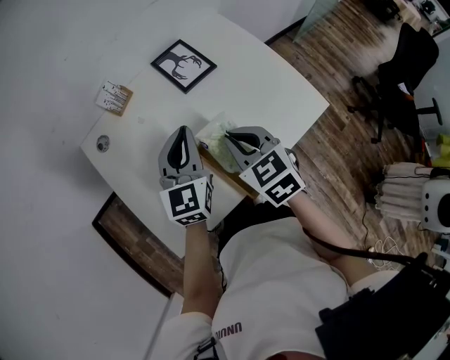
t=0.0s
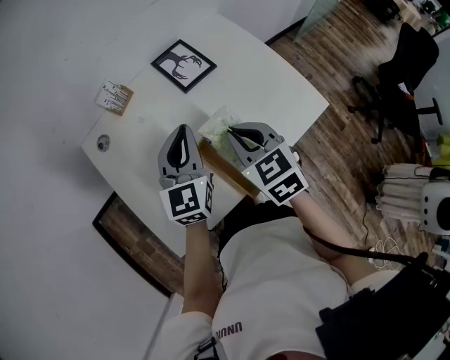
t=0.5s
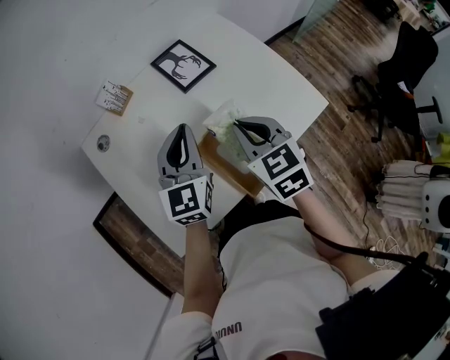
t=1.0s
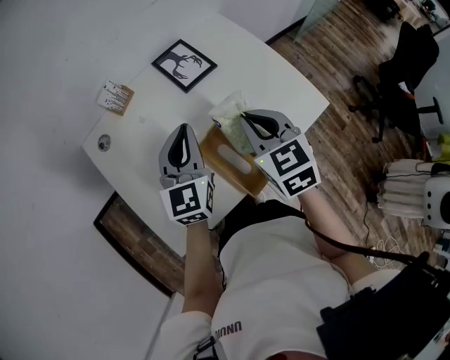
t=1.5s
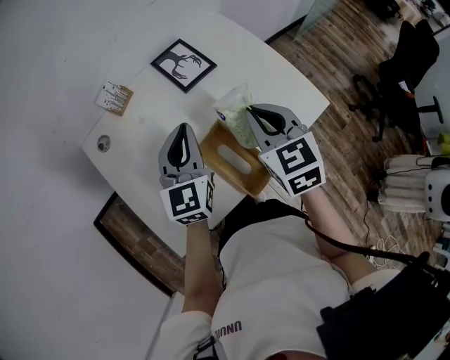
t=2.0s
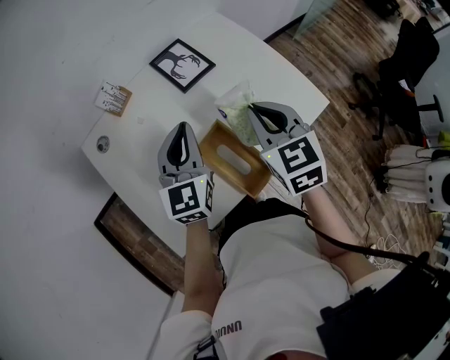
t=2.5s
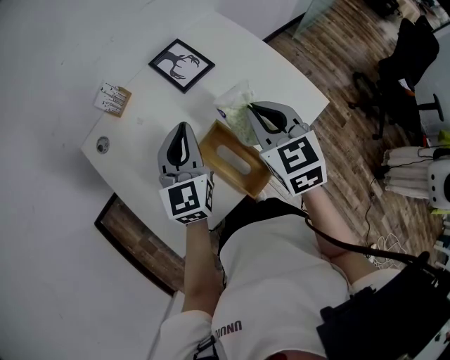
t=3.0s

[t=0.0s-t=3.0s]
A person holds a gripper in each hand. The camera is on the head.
t=0.0s to t=1.5s: The right gripper shifts by about 5 cm.
t=1.5s to t=3.0s: There are only small adjustments of the grippers.

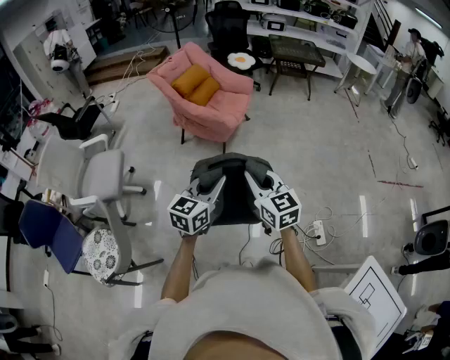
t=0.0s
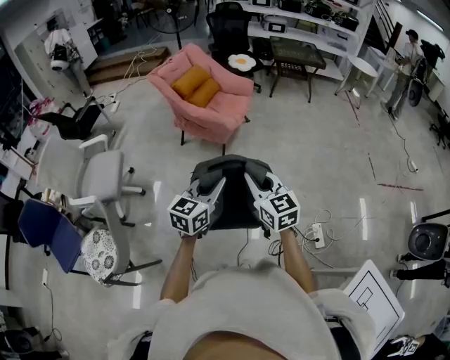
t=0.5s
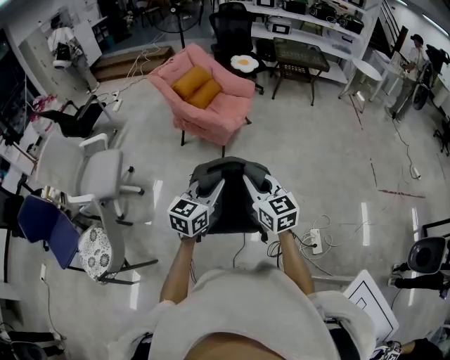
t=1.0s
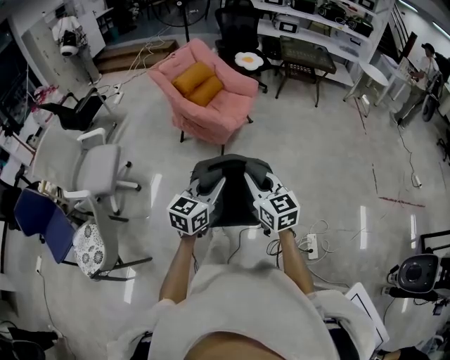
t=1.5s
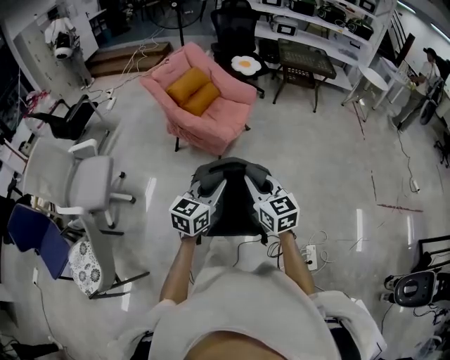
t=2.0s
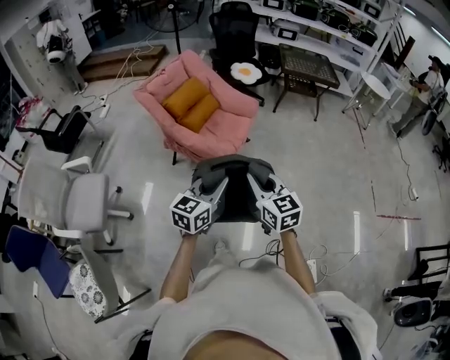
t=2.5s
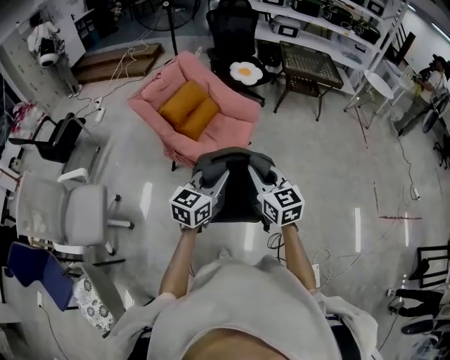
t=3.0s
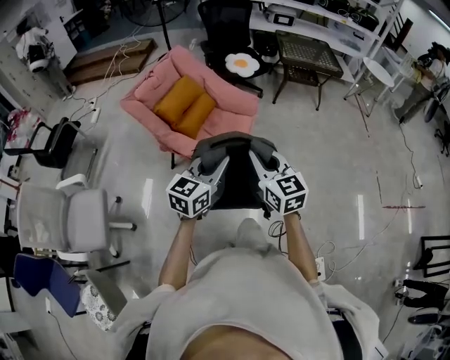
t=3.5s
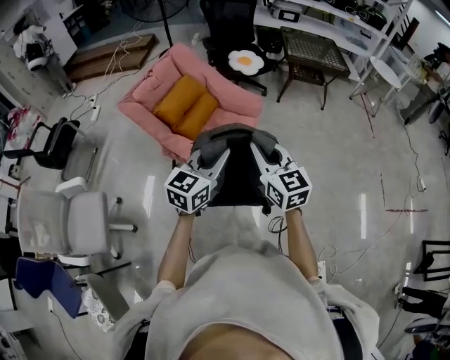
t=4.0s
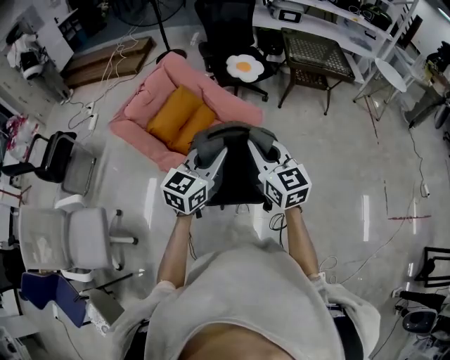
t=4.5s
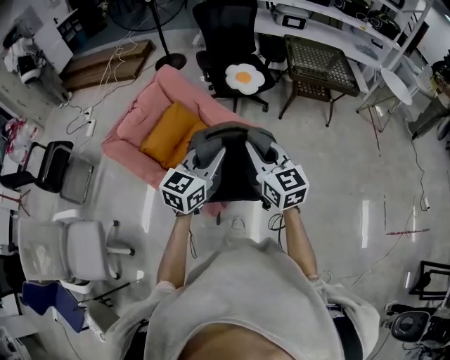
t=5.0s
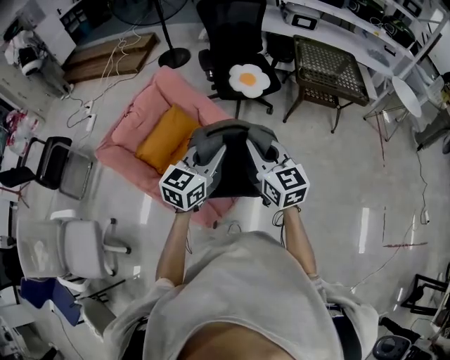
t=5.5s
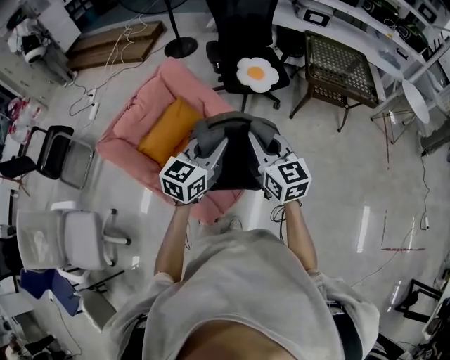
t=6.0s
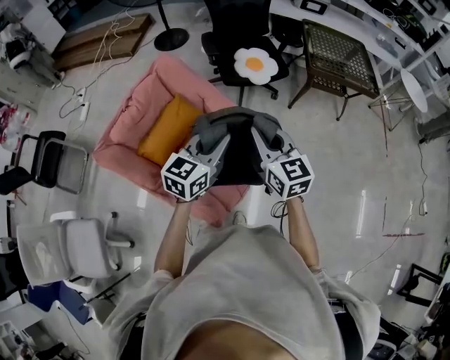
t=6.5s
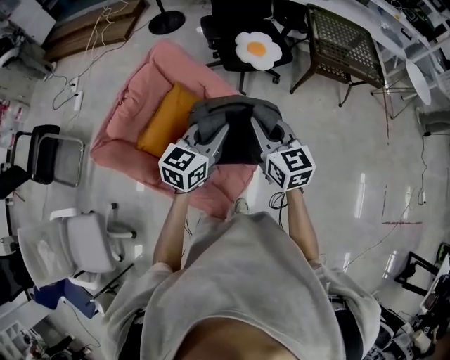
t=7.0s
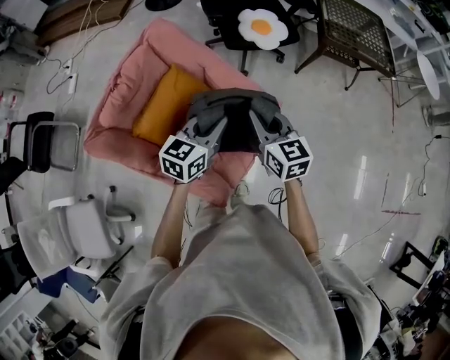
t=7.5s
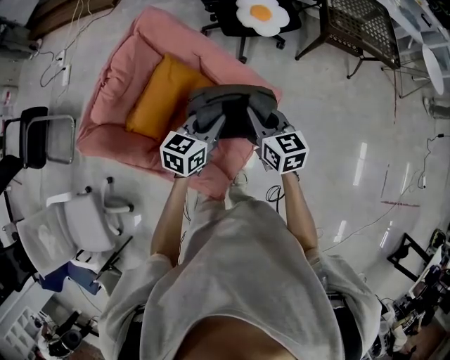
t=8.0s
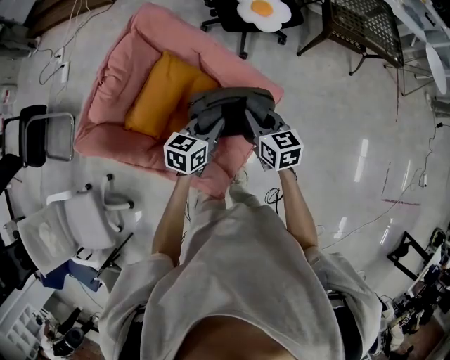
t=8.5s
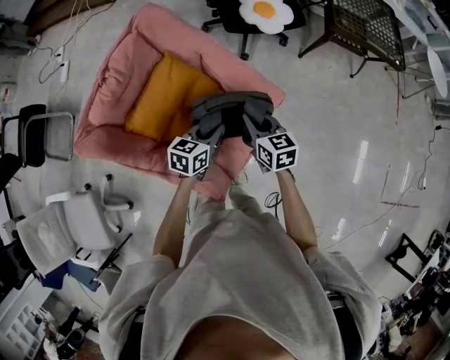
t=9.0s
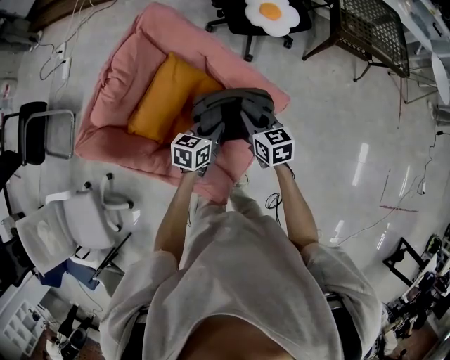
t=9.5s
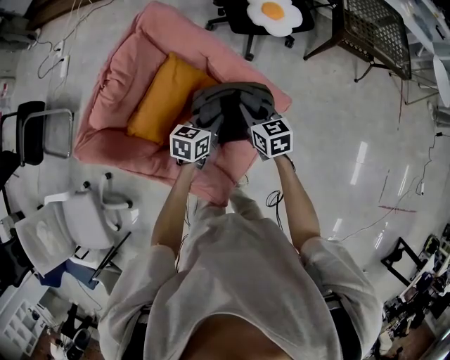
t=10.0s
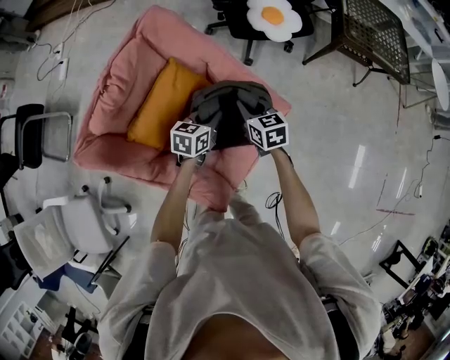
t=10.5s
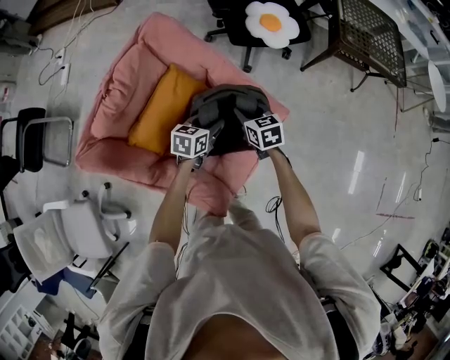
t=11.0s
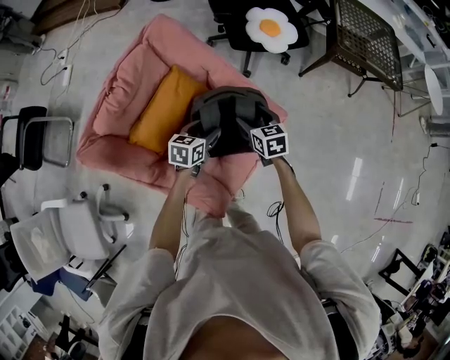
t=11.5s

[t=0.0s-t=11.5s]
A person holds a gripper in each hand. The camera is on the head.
t=0.0s to t=2.0s: Both grippers move forward, roughly 20 cm.
t=2.0s to t=4.0s: The two grippers travel together, forward, some 40 cm.
t=4.0s to t=6.0s: Both grippers are carried forward, roughly 40 cm.
t=6.0s to t=7.5s: Both grippers travel together downward, forward and to the left, roughly 20 cm.
t=7.5s to t=9.5s: The two grippers go roughly 20 cm downward. The left gripper swivels roughly 20 degrees.
t=9.5s to t=11.5s: The left gripper shifts by approximately 5 cm, and opens, while the right gripper shifts by approximately 5 cm, and opens up.

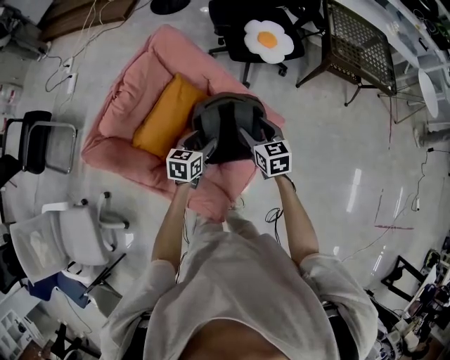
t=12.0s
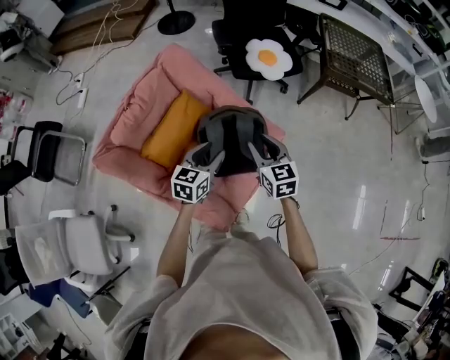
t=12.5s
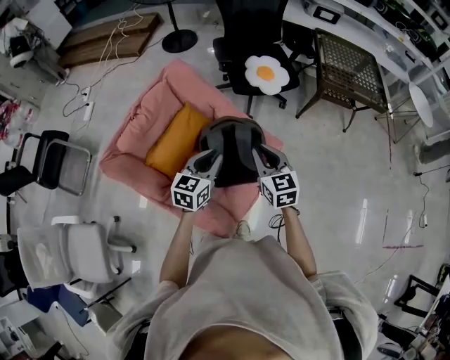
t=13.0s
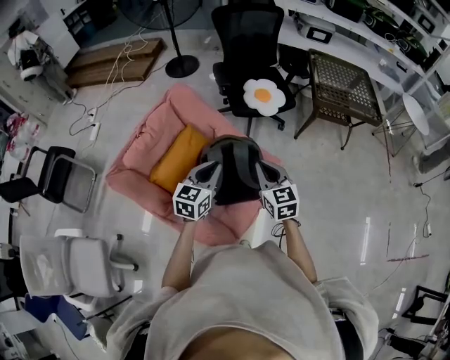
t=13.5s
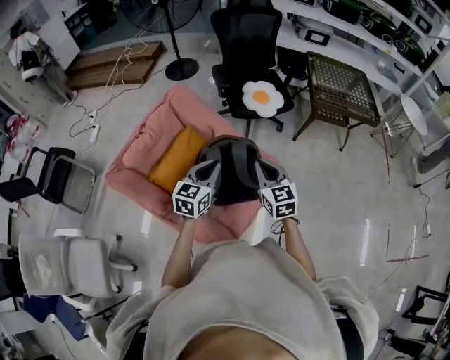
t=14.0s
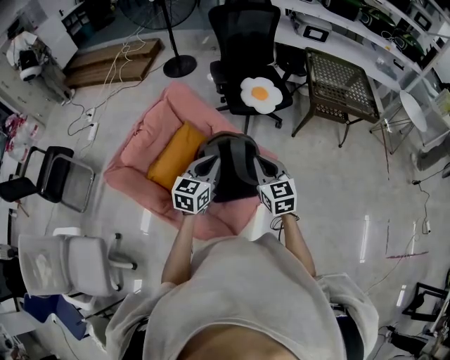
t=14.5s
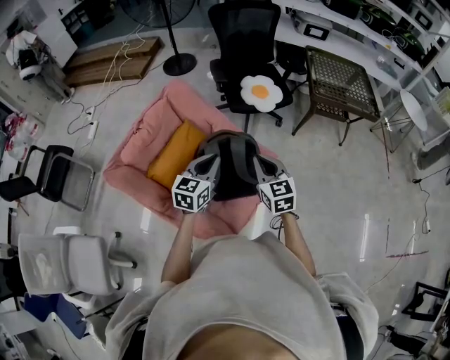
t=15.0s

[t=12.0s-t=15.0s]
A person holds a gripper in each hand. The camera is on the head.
t=12.0s to t=13.5s: The left gripper heads upward, covering about 20 cm, rotates some 20 degrees, and closes its fingers. The right gripper shifts some 20 cm upward and backward, and closes its fingers.
t=13.5s to t=15.0s: Both grippers stay put.

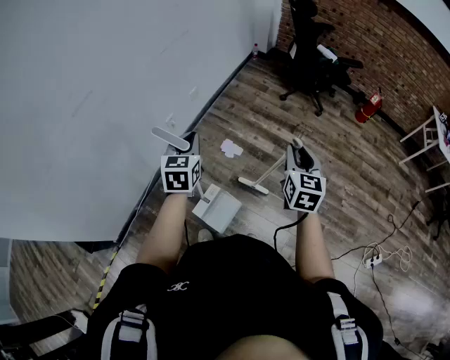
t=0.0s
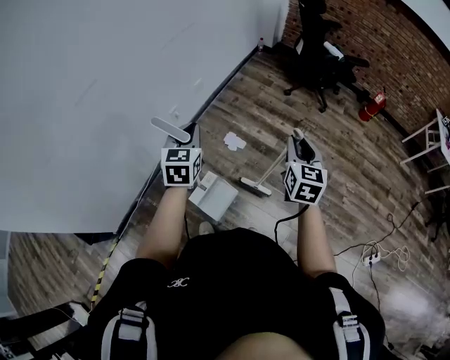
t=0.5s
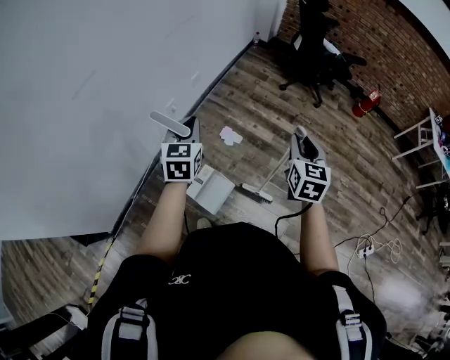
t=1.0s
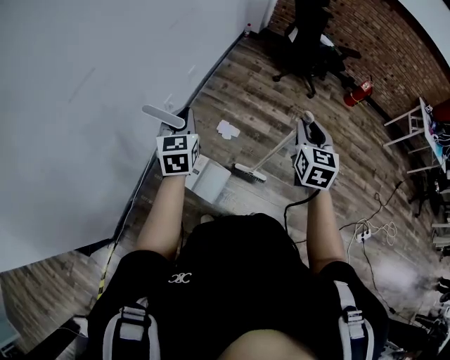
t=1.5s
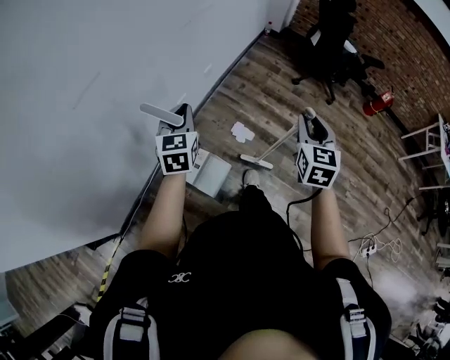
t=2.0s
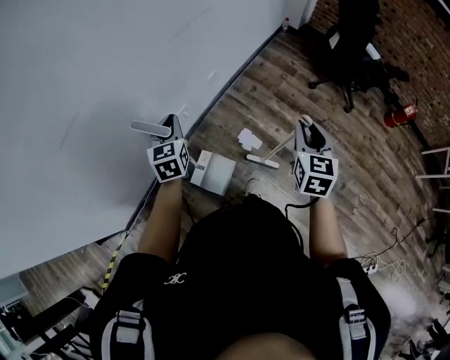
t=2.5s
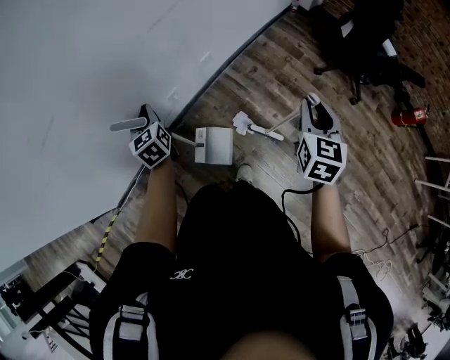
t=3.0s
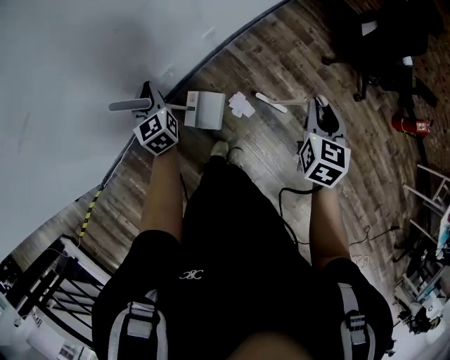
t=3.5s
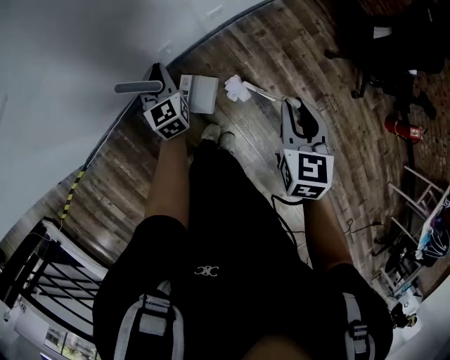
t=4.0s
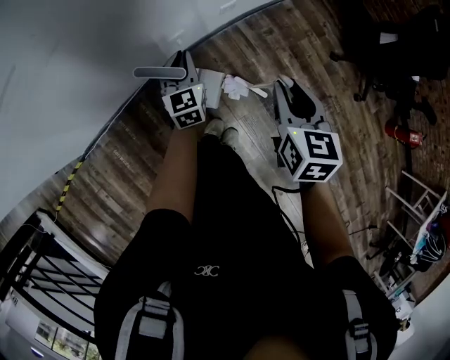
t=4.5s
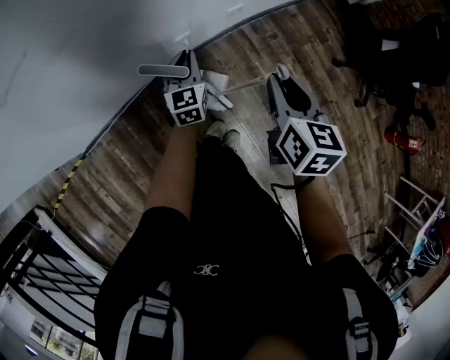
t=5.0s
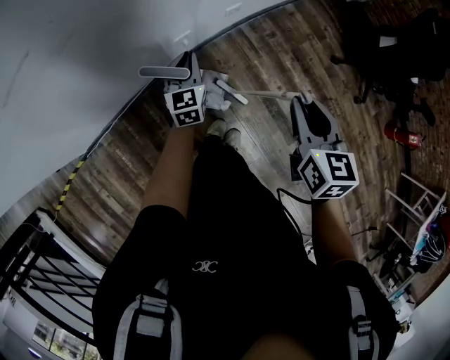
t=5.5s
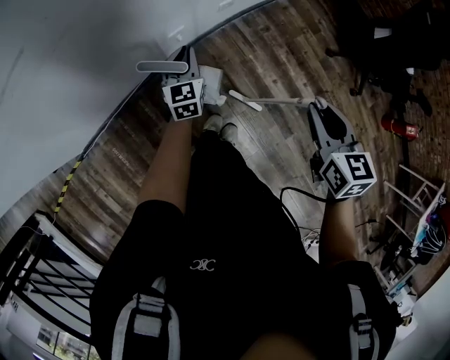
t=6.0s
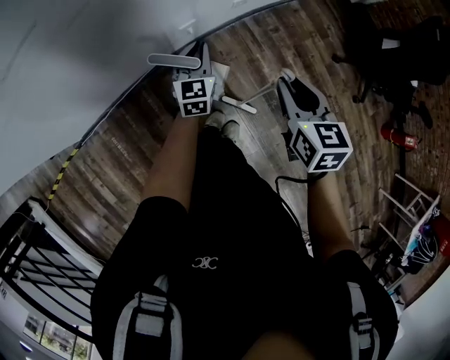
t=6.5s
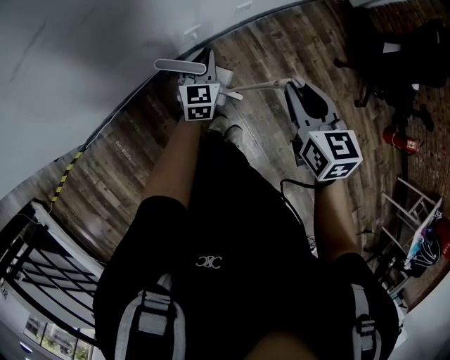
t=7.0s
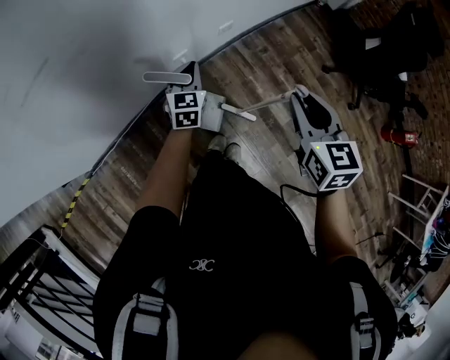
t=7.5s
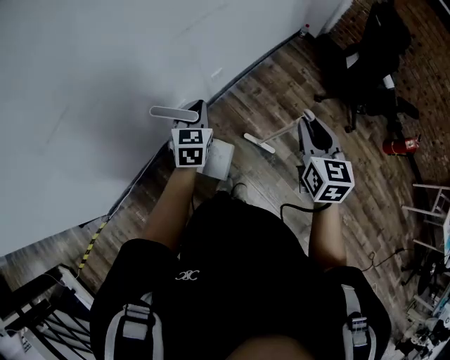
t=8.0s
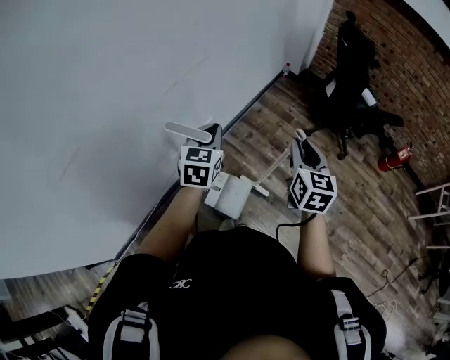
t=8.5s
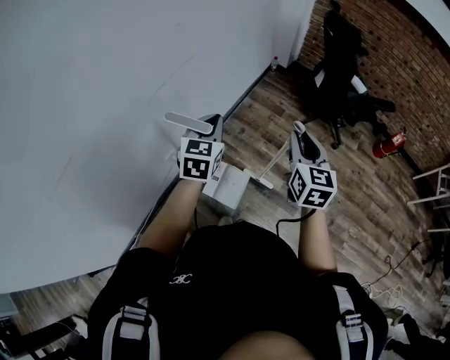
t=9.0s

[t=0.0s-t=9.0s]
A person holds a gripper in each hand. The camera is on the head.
t=0.0s to t=2.0s: The two grippers go about 20 cm to the left and forward.
t=2.0s to t=4.5s: The left gripper is displaced downward by some 20 cm, and swivels approximately 30 degrees; the right gripper moves about 30 cm, and changes its angle by roughly 40 degrees.
t=7.0s to t=9.0s: The left gripper travels upward by some 30 cm, and turns by about 30 degrees. Meanwhile the right gripper shifts by roughly 25 cm, and turns by some 40 degrees.
